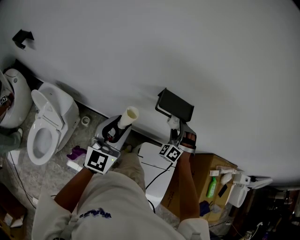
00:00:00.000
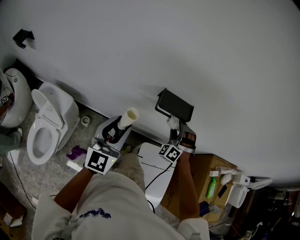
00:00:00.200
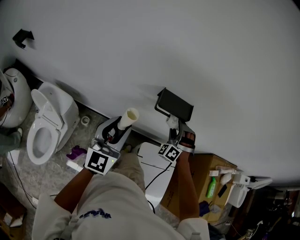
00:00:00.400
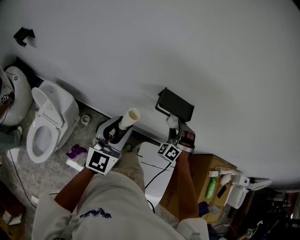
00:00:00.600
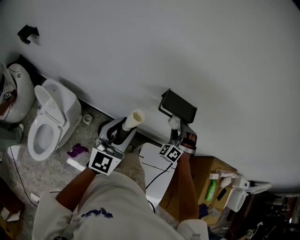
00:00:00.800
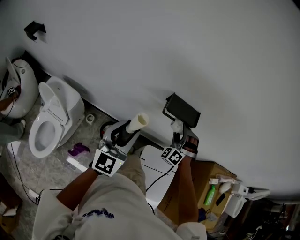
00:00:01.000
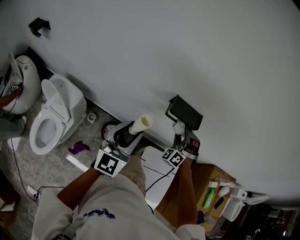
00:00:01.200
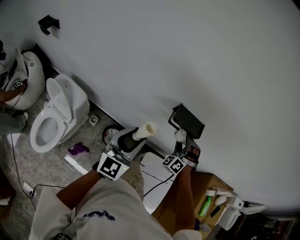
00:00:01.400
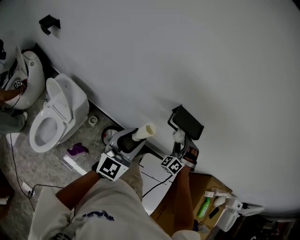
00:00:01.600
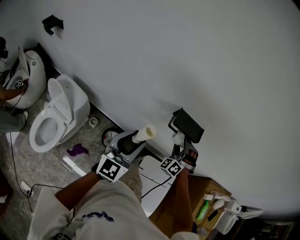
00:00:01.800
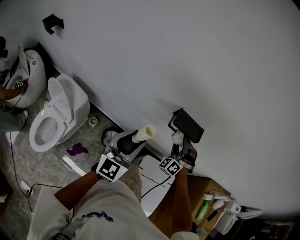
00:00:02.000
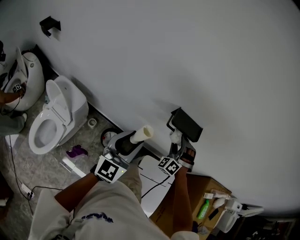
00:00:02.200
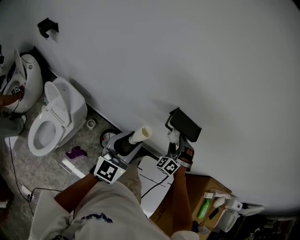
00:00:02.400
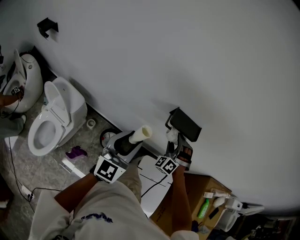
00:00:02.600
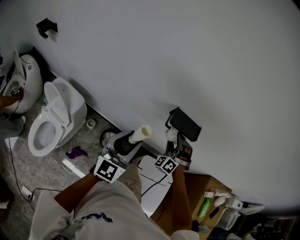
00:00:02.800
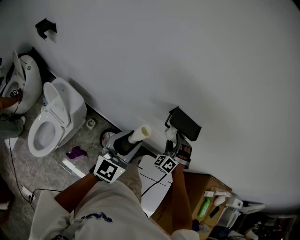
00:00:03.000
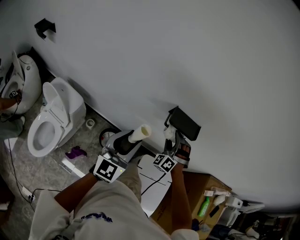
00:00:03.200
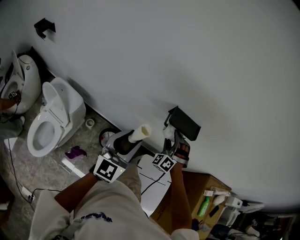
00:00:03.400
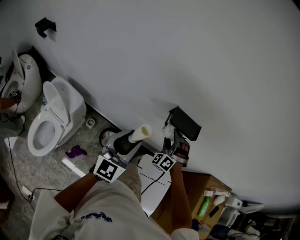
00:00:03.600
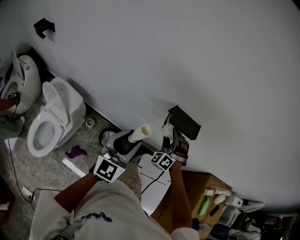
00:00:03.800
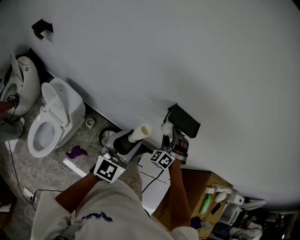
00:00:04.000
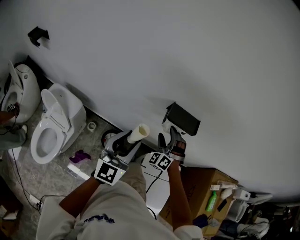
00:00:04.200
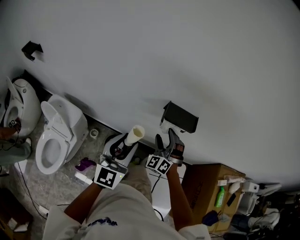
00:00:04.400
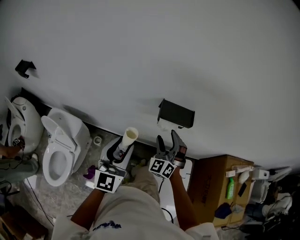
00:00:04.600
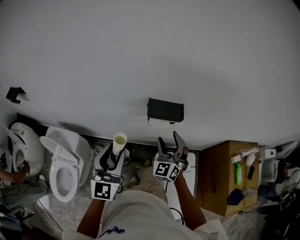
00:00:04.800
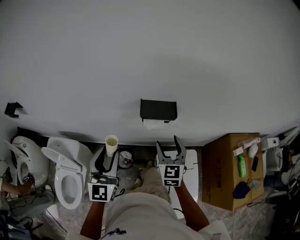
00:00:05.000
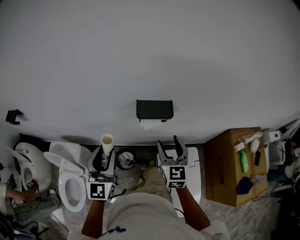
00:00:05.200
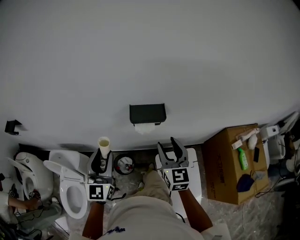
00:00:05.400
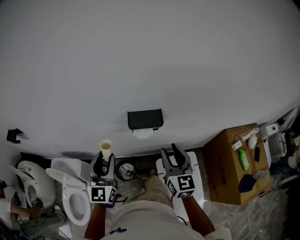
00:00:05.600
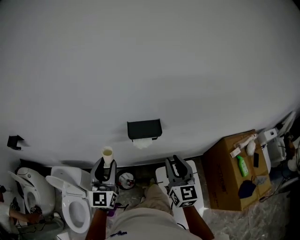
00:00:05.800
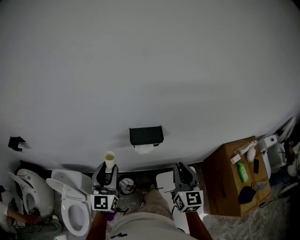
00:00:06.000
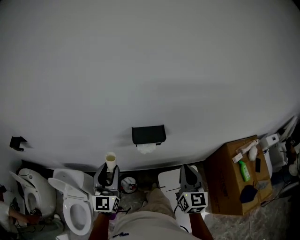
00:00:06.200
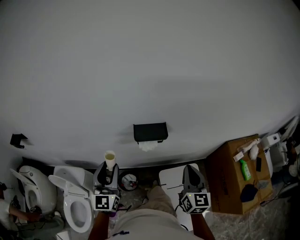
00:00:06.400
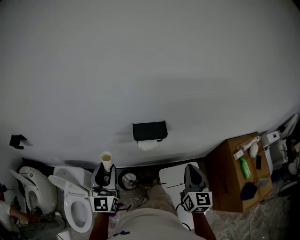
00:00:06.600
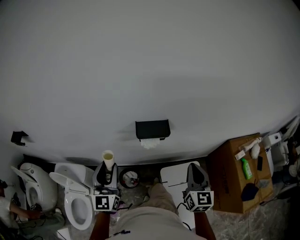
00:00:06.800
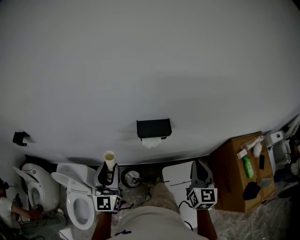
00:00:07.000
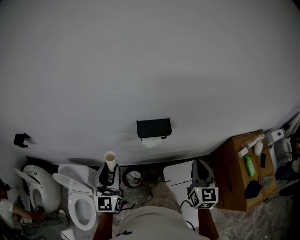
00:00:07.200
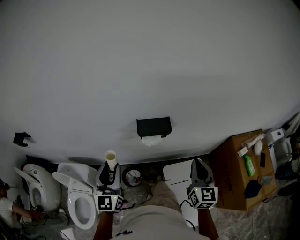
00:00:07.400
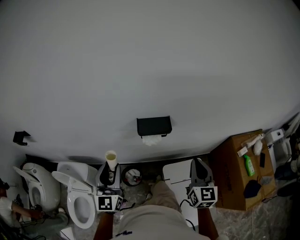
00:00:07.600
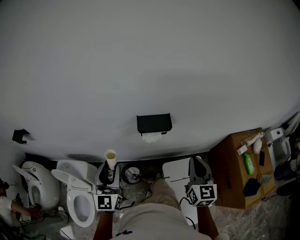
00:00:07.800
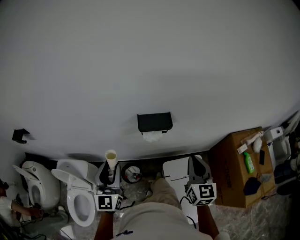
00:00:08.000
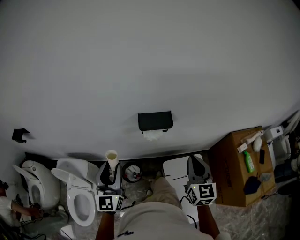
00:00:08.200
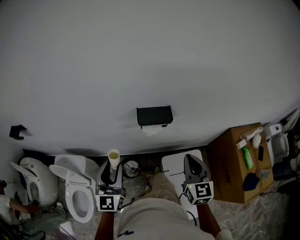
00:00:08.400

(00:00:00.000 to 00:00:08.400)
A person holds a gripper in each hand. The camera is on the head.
00:00:00.000 - 00:00:02.800: There are only small adjustments of the grippers.
00:00:02.800 - 00:00:04.200: There are only small adjustments of the grippers.
00:00:04.200 - 00:00:05.600: The right gripper heads upward, to the right and backward, covering roughly 25 cm, rolls clockwise, seen from behind, by some 80 degrees, and closes up.
00:00:05.600 - 00:00:07.000: The right gripper travels to the right by about 10 cm, and closes its fingers.
00:00:07.000 - 00:00:08.400: The right gripper changes place by about 5 cm.

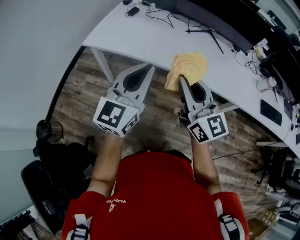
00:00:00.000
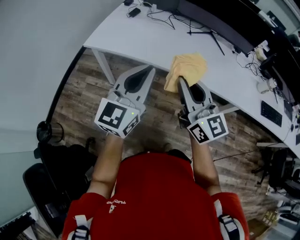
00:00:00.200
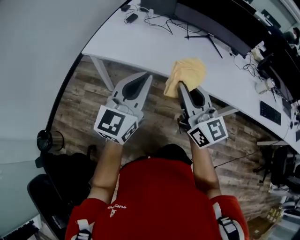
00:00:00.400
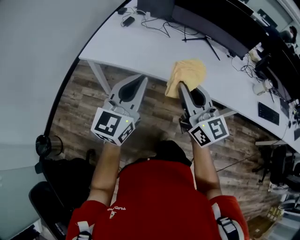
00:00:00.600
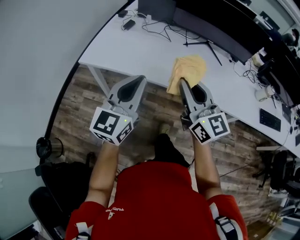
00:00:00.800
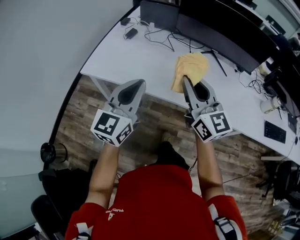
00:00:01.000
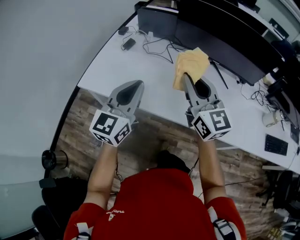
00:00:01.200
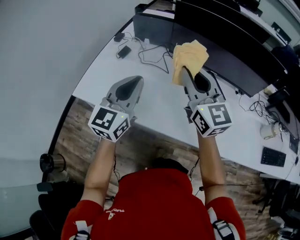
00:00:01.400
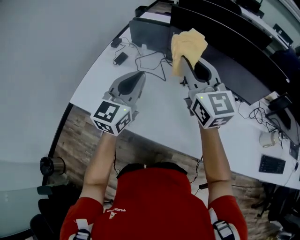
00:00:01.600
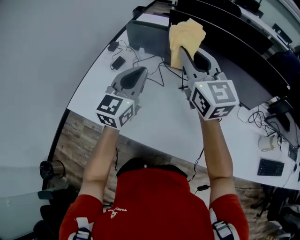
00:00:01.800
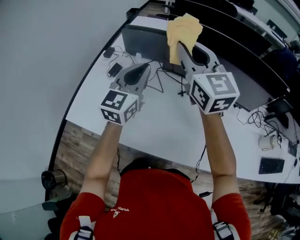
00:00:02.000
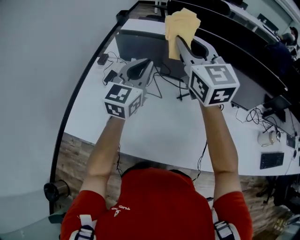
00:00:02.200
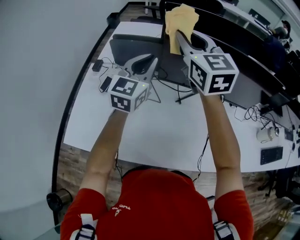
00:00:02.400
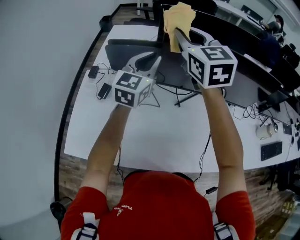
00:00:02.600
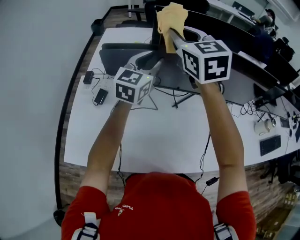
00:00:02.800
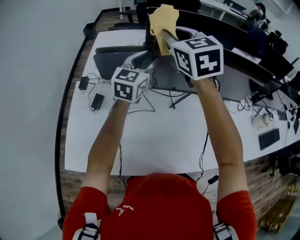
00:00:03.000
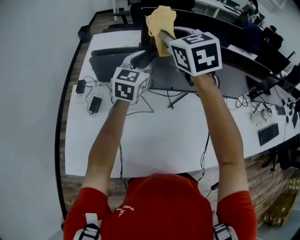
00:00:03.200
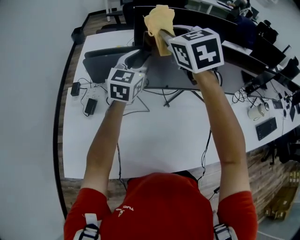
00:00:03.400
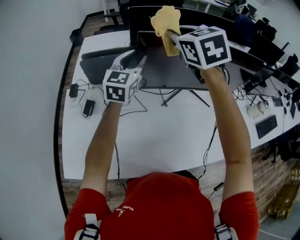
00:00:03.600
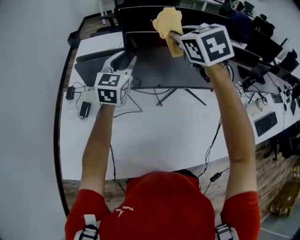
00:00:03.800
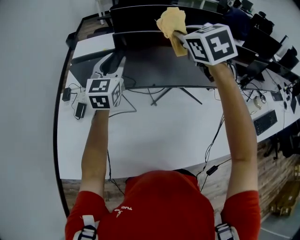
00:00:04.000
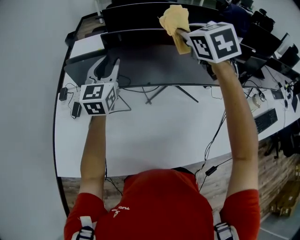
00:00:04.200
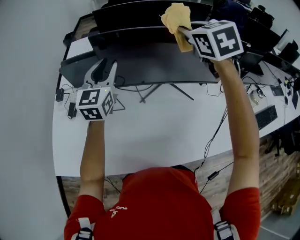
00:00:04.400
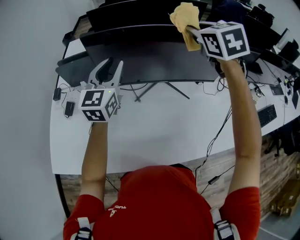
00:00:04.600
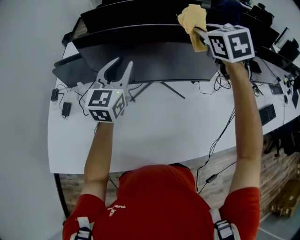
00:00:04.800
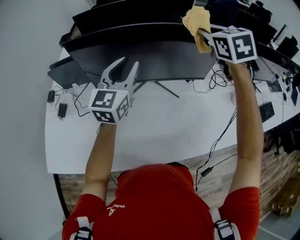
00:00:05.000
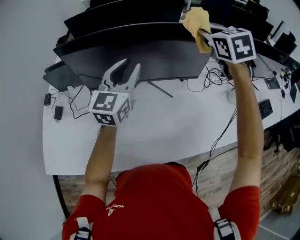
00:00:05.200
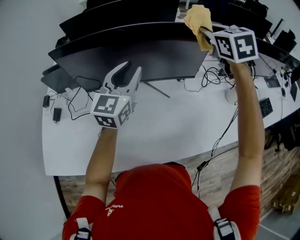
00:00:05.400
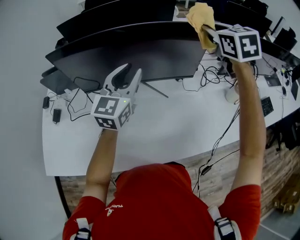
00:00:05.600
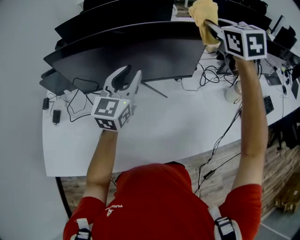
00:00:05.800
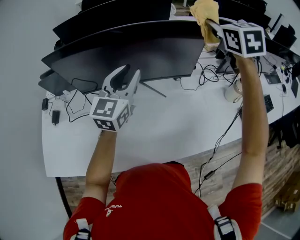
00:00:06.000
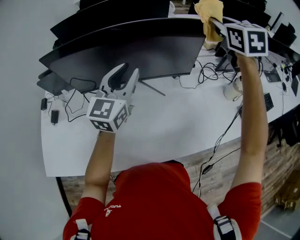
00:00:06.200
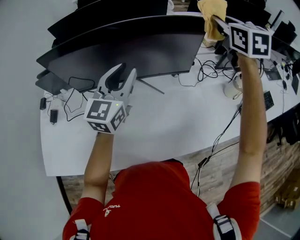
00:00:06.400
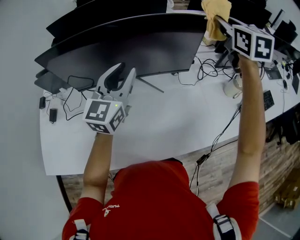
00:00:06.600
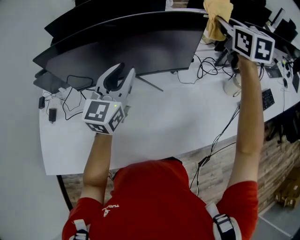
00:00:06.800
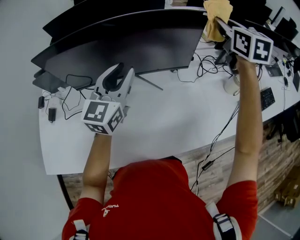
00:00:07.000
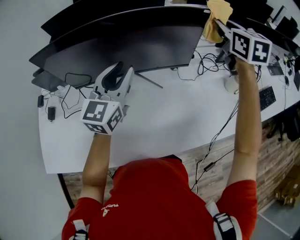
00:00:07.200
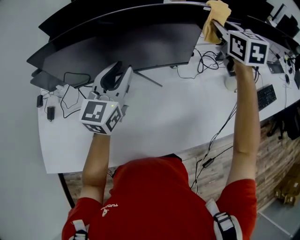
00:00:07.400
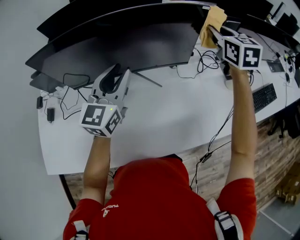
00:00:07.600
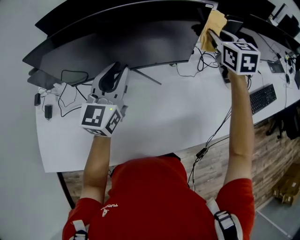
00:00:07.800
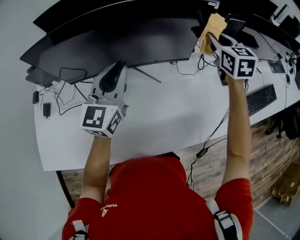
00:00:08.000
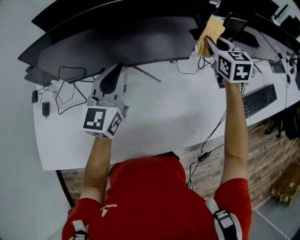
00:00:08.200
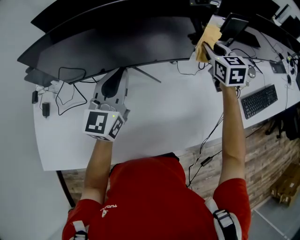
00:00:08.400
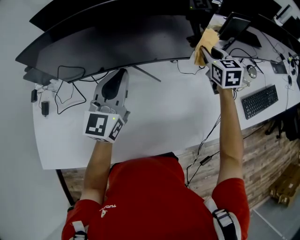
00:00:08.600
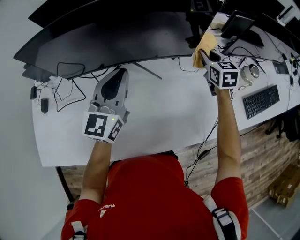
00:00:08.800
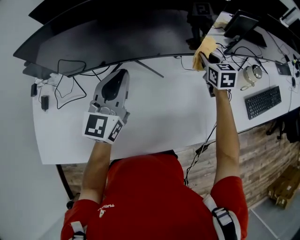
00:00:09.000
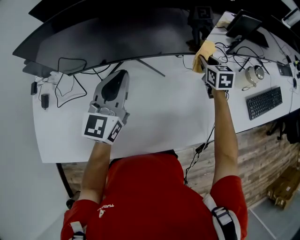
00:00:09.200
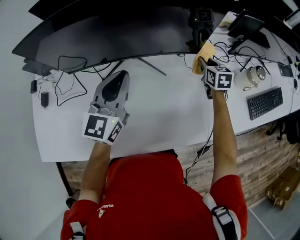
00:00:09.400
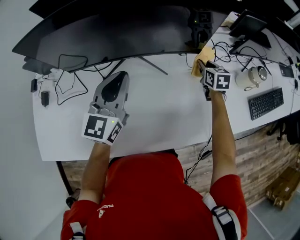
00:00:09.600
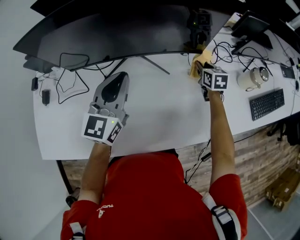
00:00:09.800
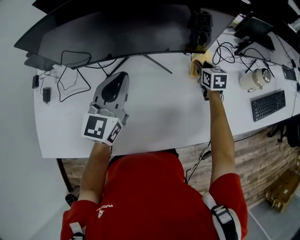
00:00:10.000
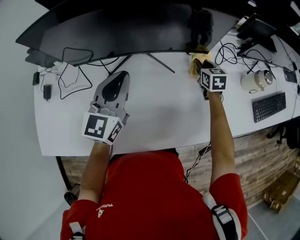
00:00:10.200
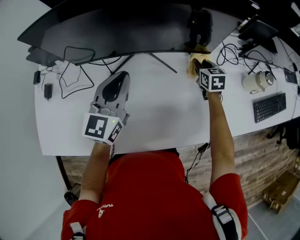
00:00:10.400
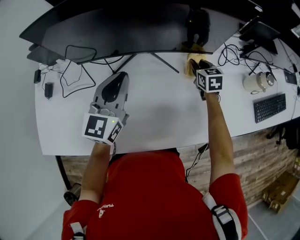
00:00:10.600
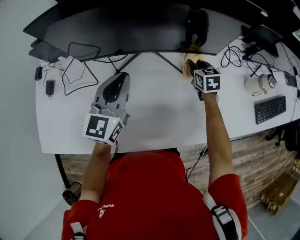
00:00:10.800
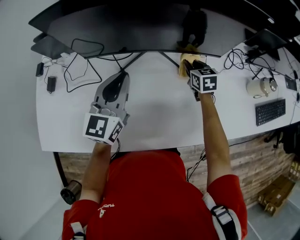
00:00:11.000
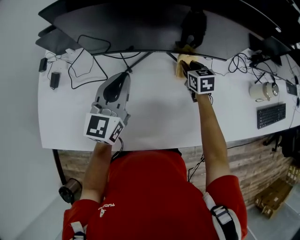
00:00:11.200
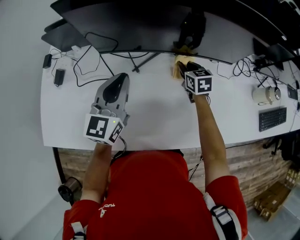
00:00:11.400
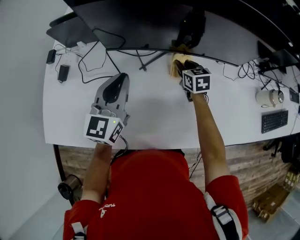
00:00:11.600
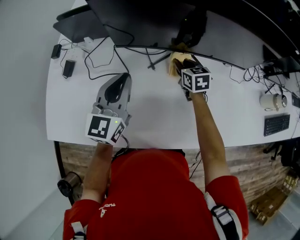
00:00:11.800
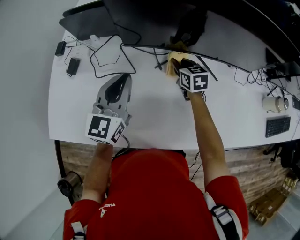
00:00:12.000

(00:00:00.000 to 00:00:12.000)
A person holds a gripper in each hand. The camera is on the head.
00:00:00.000 - 00:00:01.600: Both grippers move forward, about 40 cm.
00:00:01.600 - 00:00:03.000: Both grippers move forward, about 25 cm. The right gripper swivels about 30 degrees, while the left gripper changes its angle by some 20 degrees, and opens up.
00:00:03.000 - 00:00:04.400: The right gripper moves to the right, some 25 cm; the left gripper heads to the right, covering some 5 cm.
00:00:04.400 - 00:00:06.000: Both grippers move to the right, approximately 30 cm.
00:00:06.000 - 00:00:07.600: The right gripper moves downward, about 10 cm.
00:00:07.600 - 00:00:09.000: The left gripper closes its fingers. Meanwhile the right gripper shifts about 20 cm downward.
00:00:09.000 - 00:00:10.400: The right gripper heads downward and to the left, covering roughly 10 cm; the left gripper is displaced to the left by about 5 cm.
00:00:10.400 - 00:00:12.000: The right gripper travels to the left by some 35 cm. The left gripper goes some 25 cm to the left.

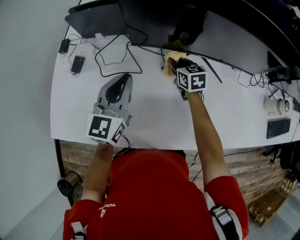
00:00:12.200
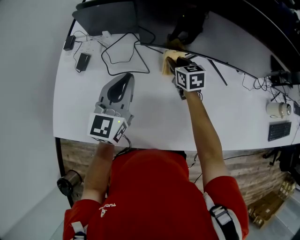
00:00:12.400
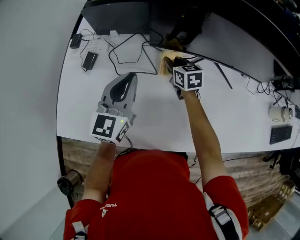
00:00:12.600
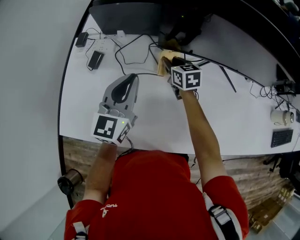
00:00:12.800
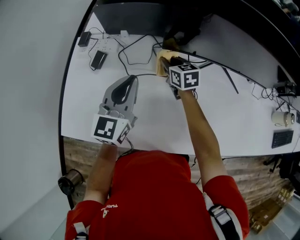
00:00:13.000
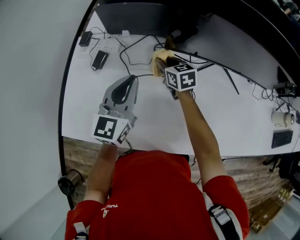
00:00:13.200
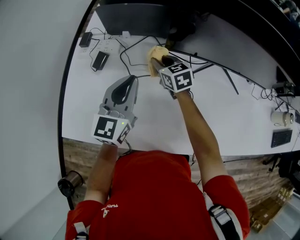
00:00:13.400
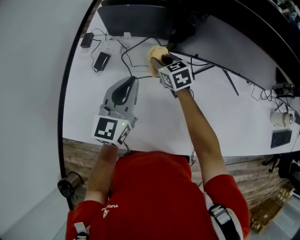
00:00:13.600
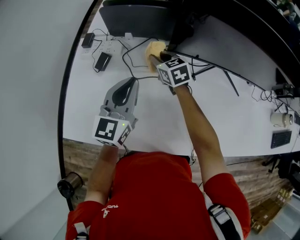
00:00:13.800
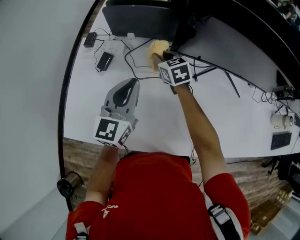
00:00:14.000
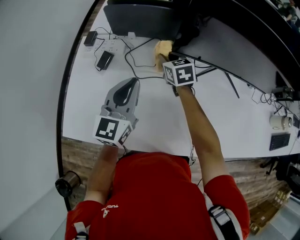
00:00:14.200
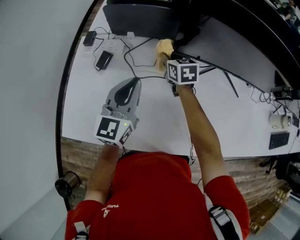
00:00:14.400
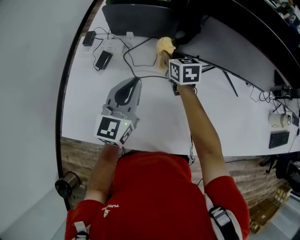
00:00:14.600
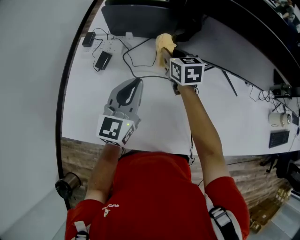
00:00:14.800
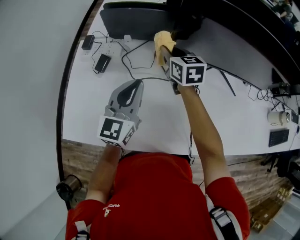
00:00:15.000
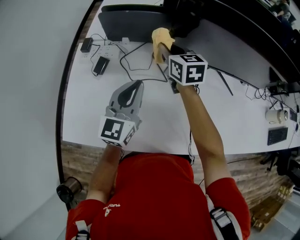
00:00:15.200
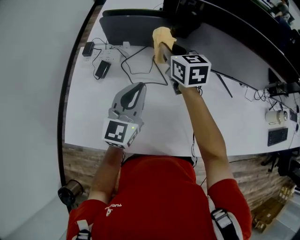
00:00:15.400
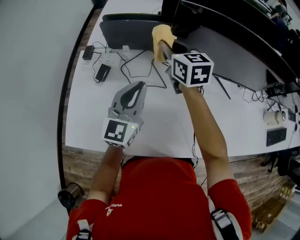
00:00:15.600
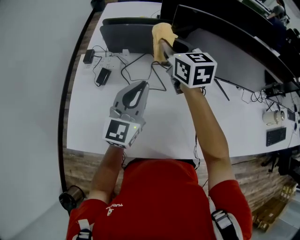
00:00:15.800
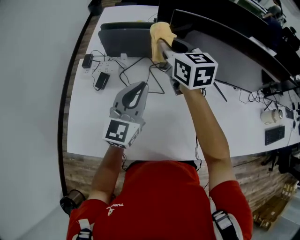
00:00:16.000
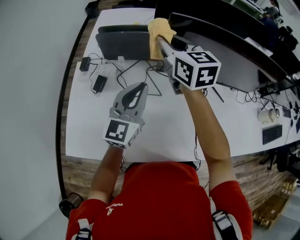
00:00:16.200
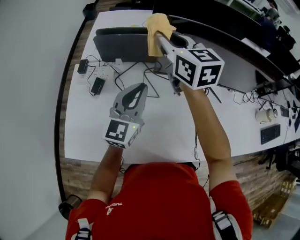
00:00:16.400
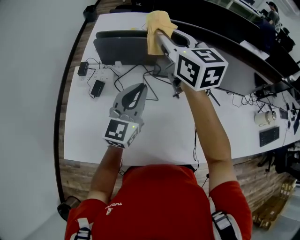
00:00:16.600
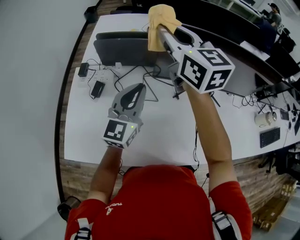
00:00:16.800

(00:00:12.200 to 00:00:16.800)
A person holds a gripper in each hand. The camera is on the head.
00:00:12.200 - 00:00:13.800: The right gripper is displaced to the left by roughly 25 cm. The left gripper goes roughly 15 cm to the left.
00:00:13.800 - 00:00:15.200: The right gripper goes about 10 cm upward.
00:00:15.200 - 00:00:16.800: The right gripper moves upward, approximately 25 cm, and rotates roughly 20 degrees; the left gripper heads upward, covering some 5 cm.
